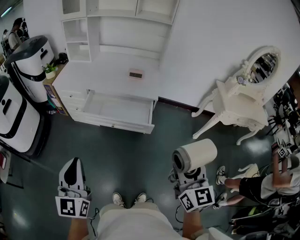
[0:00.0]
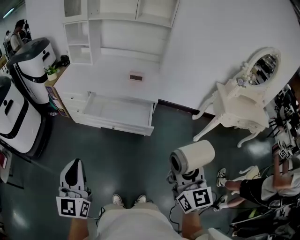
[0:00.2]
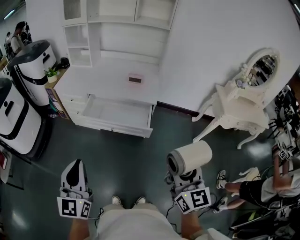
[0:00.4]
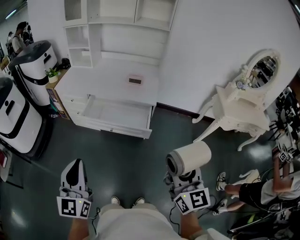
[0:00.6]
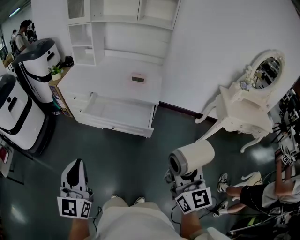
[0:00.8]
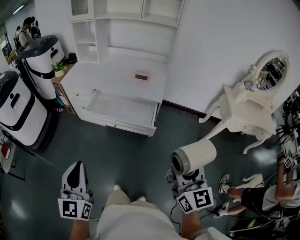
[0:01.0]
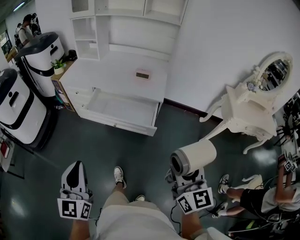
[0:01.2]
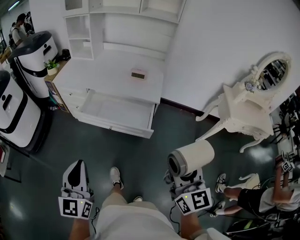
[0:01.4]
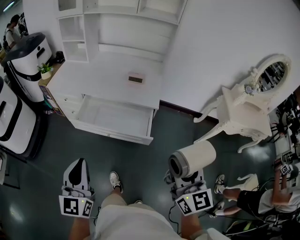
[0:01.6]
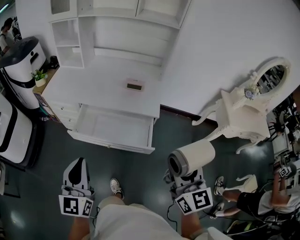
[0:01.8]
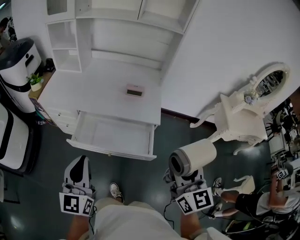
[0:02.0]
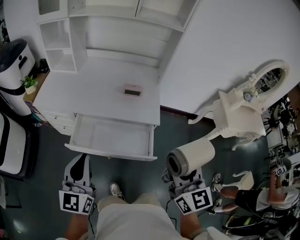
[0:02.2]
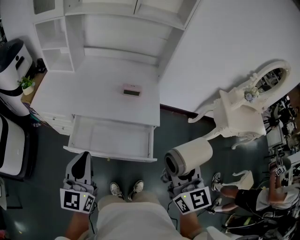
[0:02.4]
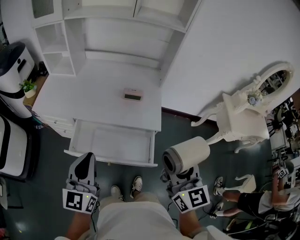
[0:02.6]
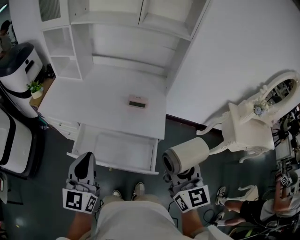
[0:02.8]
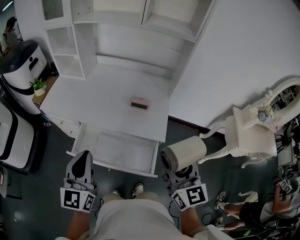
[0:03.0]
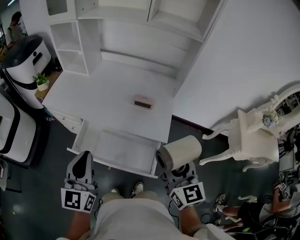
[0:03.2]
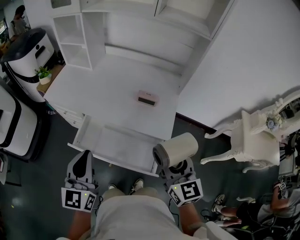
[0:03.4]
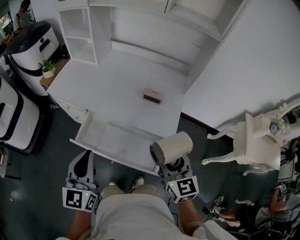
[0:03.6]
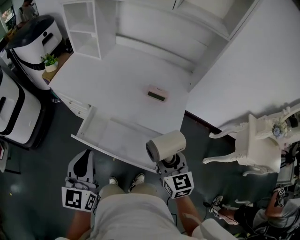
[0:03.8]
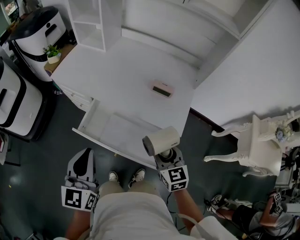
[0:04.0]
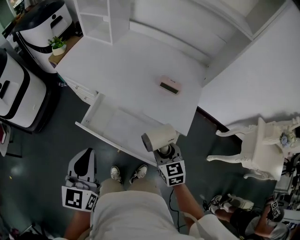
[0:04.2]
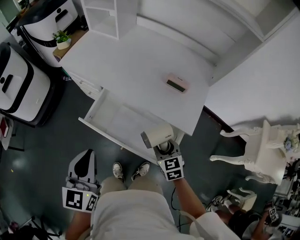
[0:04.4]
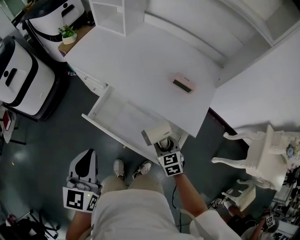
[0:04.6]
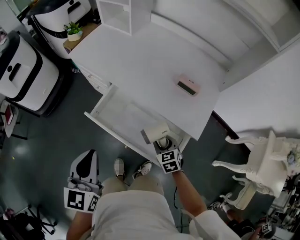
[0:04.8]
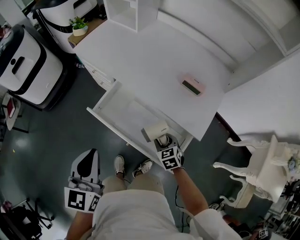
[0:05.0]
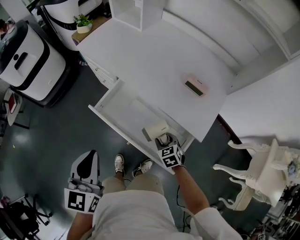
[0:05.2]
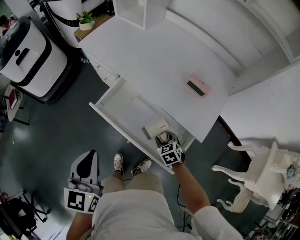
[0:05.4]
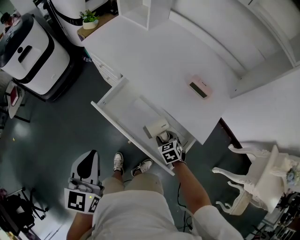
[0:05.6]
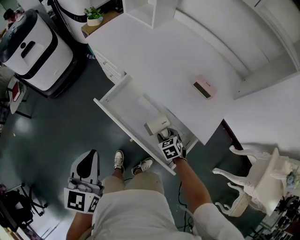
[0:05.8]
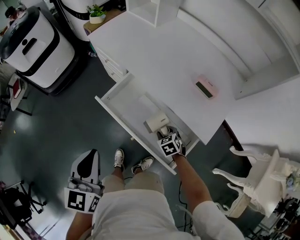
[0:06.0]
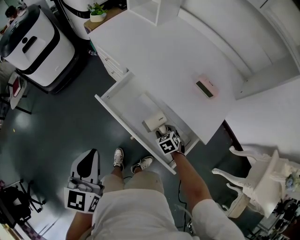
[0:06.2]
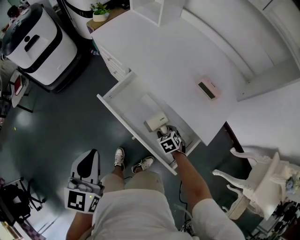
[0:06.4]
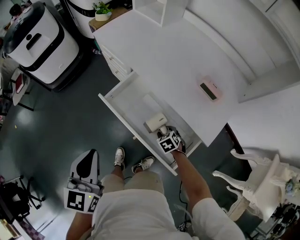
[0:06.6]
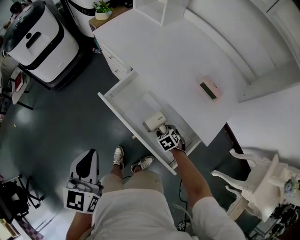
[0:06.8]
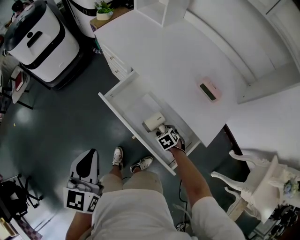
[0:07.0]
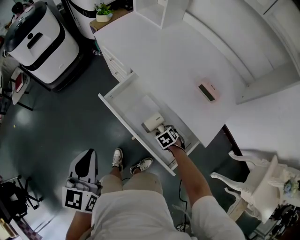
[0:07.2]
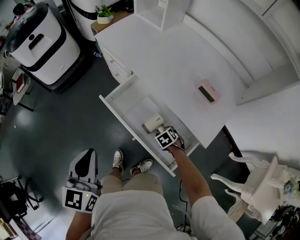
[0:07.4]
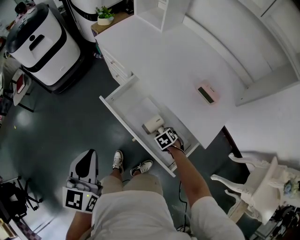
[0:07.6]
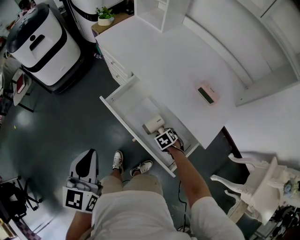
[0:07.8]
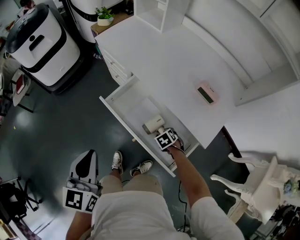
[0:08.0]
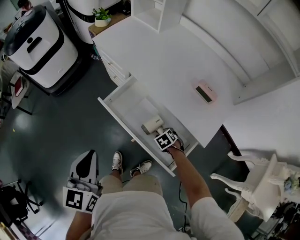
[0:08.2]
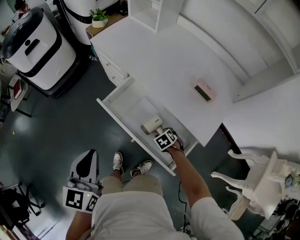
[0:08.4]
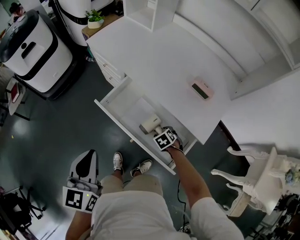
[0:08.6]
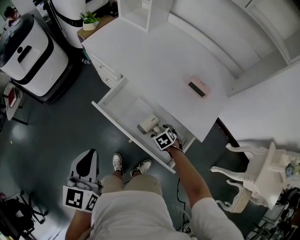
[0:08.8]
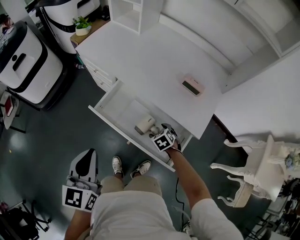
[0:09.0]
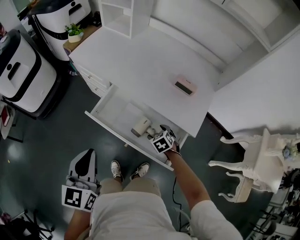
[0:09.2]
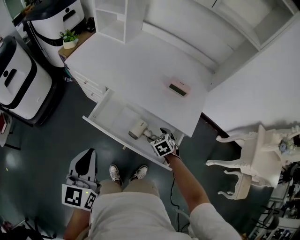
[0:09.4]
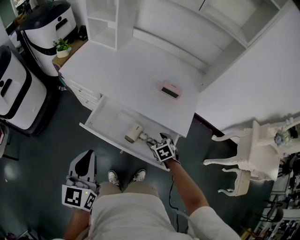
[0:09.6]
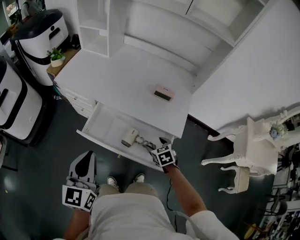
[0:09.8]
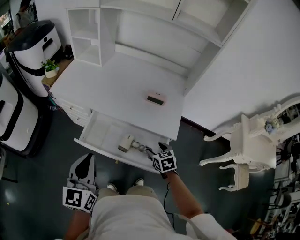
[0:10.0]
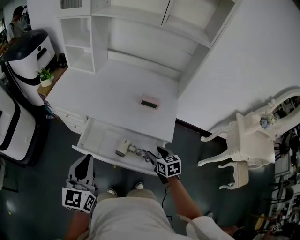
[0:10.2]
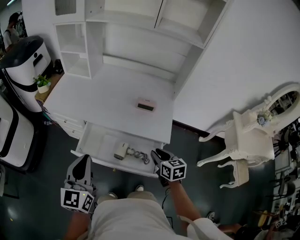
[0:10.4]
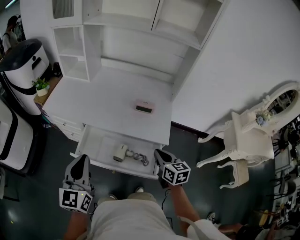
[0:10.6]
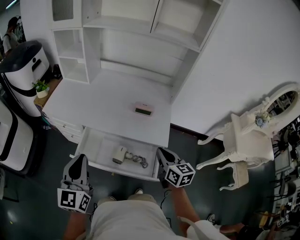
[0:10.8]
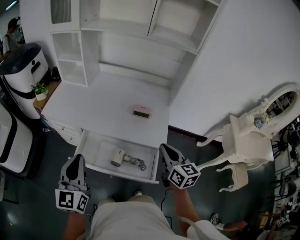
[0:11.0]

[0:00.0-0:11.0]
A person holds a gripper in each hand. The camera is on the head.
0:00.0 to 0:01.6: The right gripper travels forward by roughly 10 cm, while the left gripper heads forward and to the right, covering approximately 10 cm.
0:01.6 to 0:03.2: Both grippers move forward, approximately 30 cm.
0:03.2 to 0:04.8: The left gripper heads downward and to the left, covering about 10 cm, and rotates about 20 degrees; the right gripper travels downward by some 35 cm, and tips its fingers downward by roughly 40 degrees.
0:04.8 to 0:06.2: The left gripper moves approximately 5 cm; the right gripper travels downward by roughly 10 cm, and rotates approximately 20 degrees.
0:06.2 to 0:07.8: The grippers make only small movements.
0:07.8 to 0:09.4: The right gripper travels upward by some 10 cm, turns by about 20 degrees, and opens its fingers.
0:09.4 to 0:11.0: The right gripper goes approximately 30 cm upward, angles its fingers upward, by about 50 degrees, and closes its fingers; the left gripper goes about 10 cm upward and forward.

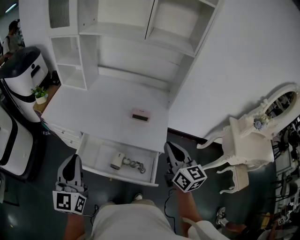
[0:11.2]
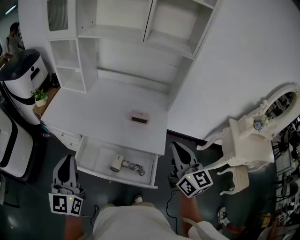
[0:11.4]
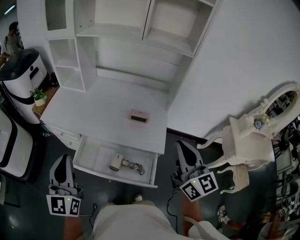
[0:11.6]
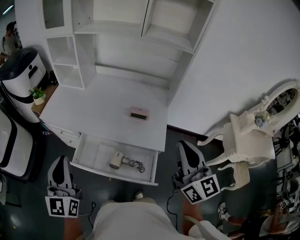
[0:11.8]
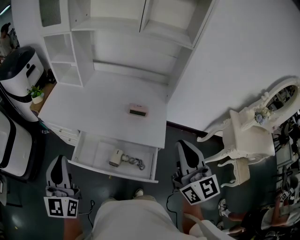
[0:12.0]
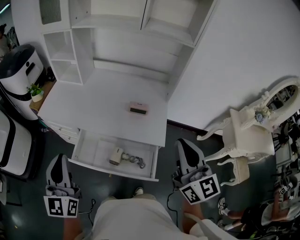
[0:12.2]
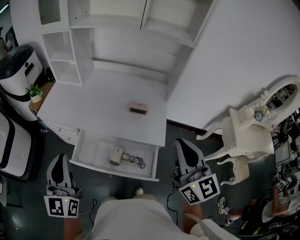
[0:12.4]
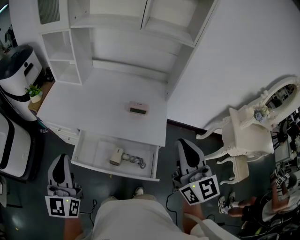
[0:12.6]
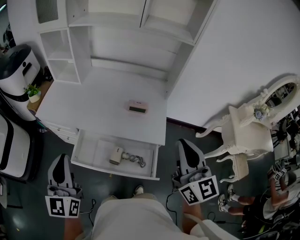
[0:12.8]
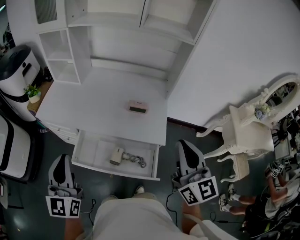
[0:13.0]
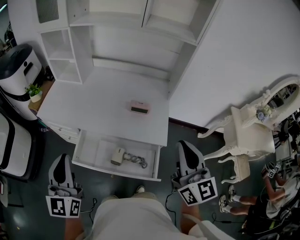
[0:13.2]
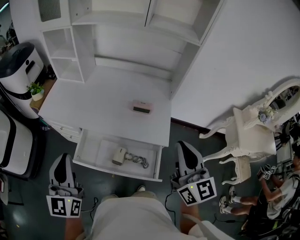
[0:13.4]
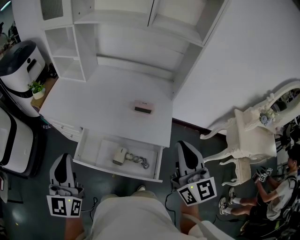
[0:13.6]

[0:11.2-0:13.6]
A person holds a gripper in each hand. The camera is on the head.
0:11.2 to 0:12.4: The right gripper shifts roughly 10 cm upward.
0:12.4 to 0:13.6: There are only small adjustments of the grippers.

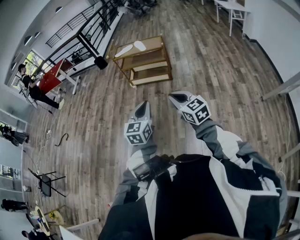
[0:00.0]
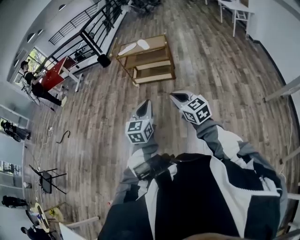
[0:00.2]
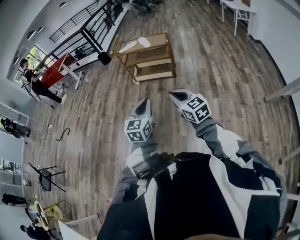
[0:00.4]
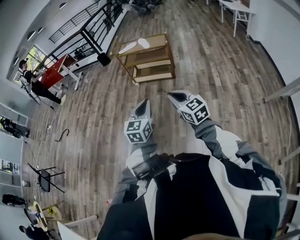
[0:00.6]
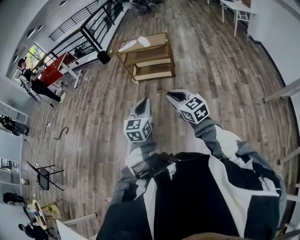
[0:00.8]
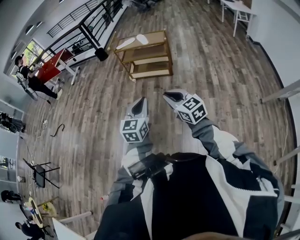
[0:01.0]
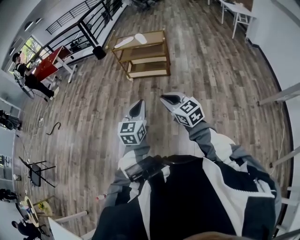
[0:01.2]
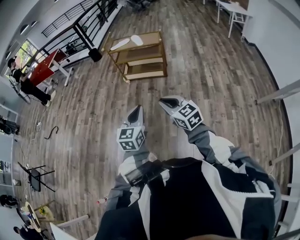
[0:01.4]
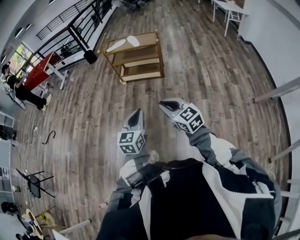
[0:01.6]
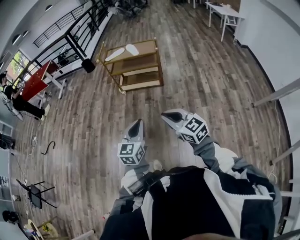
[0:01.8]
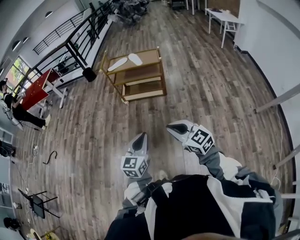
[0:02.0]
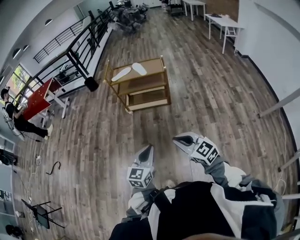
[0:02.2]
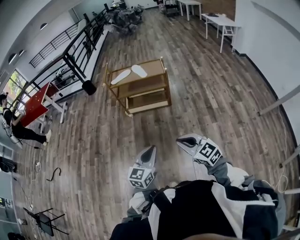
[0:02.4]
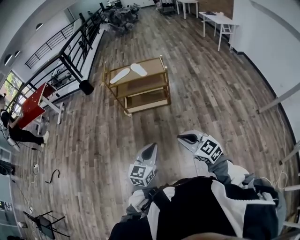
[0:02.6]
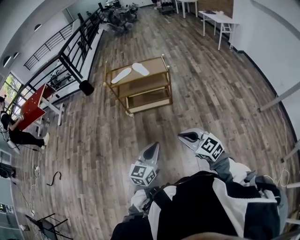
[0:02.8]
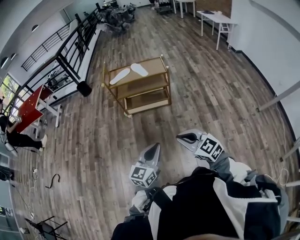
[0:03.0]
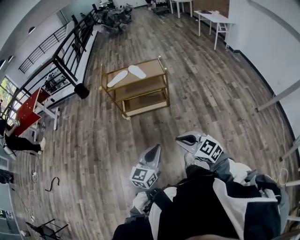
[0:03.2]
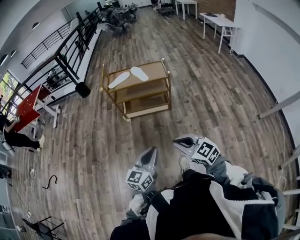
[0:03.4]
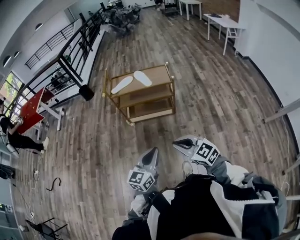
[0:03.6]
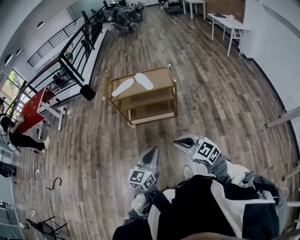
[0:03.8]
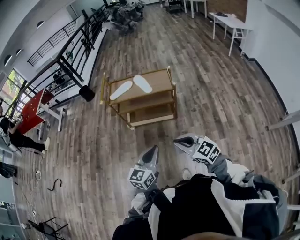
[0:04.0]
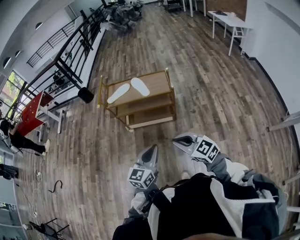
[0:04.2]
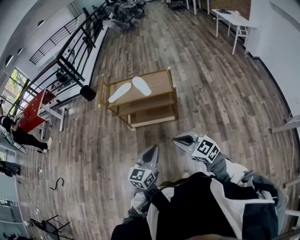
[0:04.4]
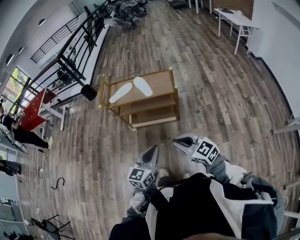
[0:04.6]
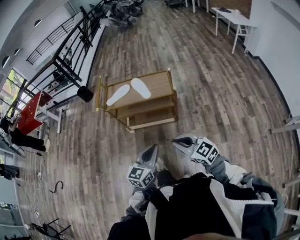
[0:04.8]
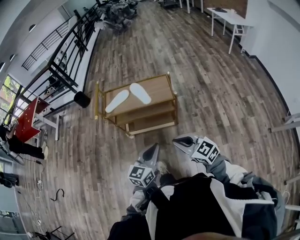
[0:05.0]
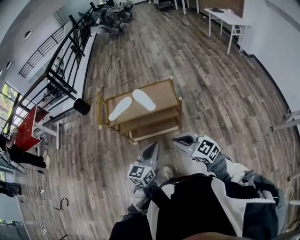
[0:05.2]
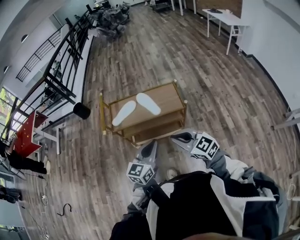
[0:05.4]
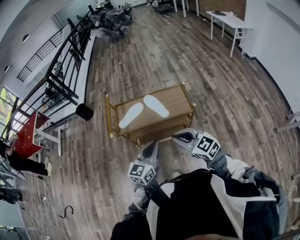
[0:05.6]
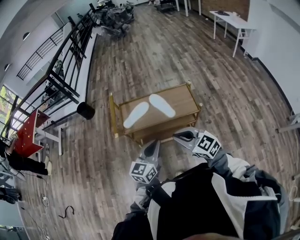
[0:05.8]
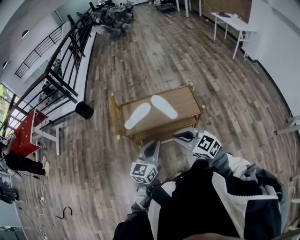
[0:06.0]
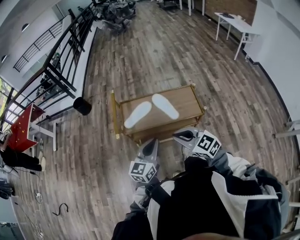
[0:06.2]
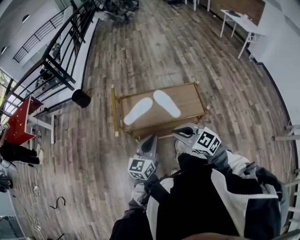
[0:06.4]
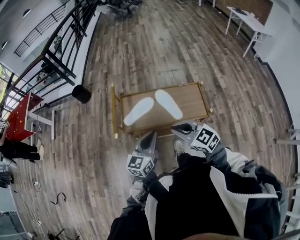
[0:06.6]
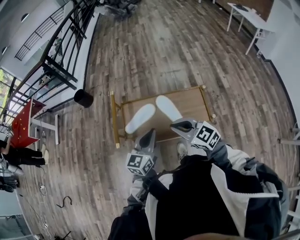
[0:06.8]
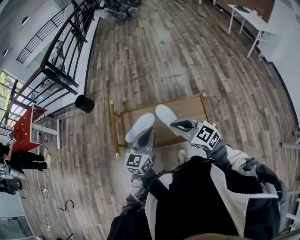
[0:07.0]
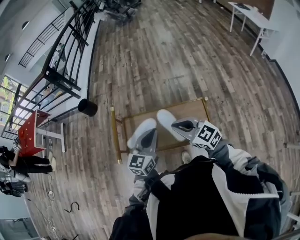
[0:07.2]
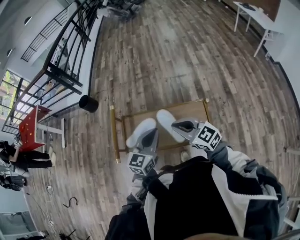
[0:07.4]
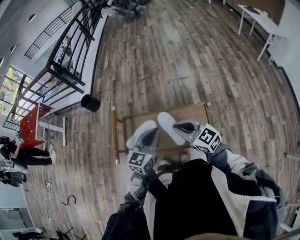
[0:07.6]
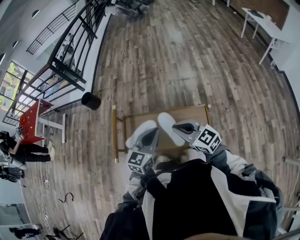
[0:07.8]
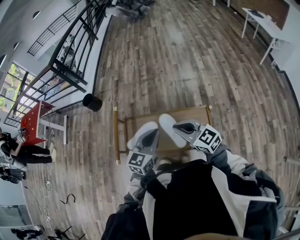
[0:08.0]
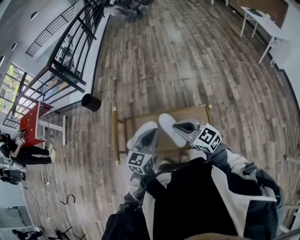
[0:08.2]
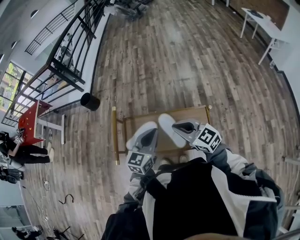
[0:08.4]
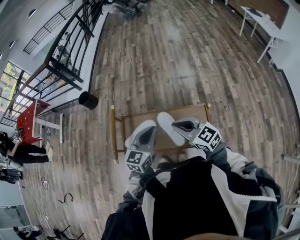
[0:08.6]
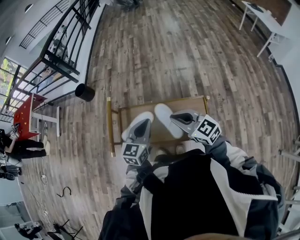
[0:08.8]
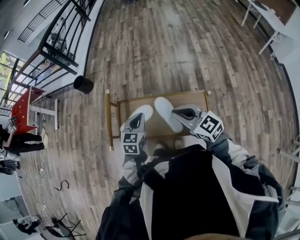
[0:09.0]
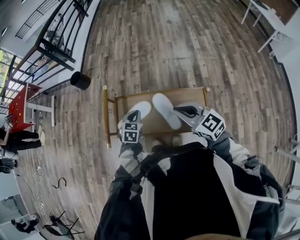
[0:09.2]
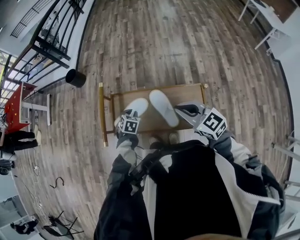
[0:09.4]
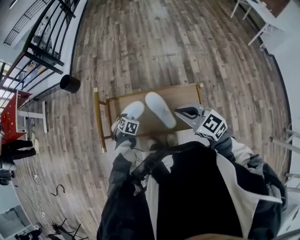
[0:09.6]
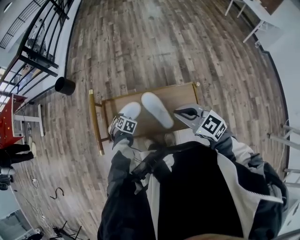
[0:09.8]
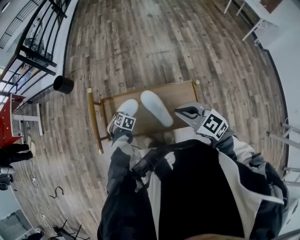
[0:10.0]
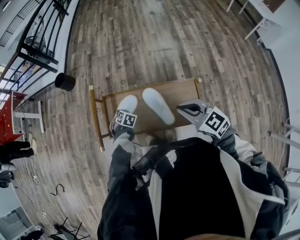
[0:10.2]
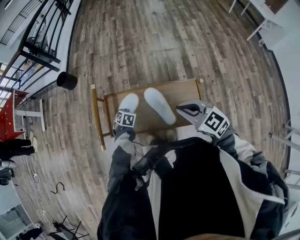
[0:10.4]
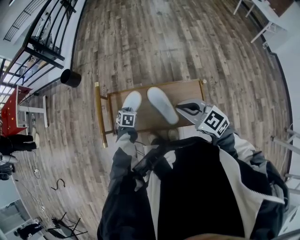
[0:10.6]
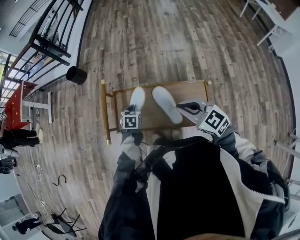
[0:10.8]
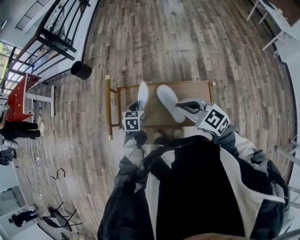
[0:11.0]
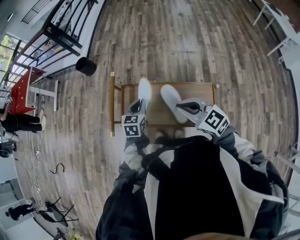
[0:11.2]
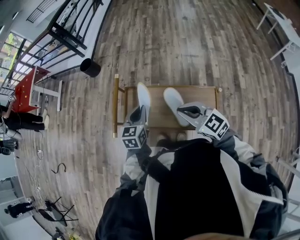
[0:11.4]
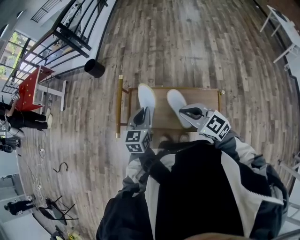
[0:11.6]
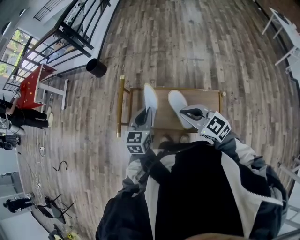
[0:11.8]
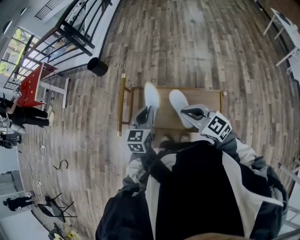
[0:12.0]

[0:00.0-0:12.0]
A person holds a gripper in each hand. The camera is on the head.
0:00.0 to 0:01.6: There are only small adjustments of the grippers.
0:01.6 to 0:03.0: The grippers both shift forward and to the left by some 20 cm. The left gripper swivels approximately 30 degrees.
0:03.0 to 0:04.4: The grippers both shift forward and to the right by some 30 cm.
0:04.4 to 0:06.0: Both grippers move forward and to the left, roughly 35 cm.
0:06.0 to 0:07.6: The grippers both shift forward and to the right by roughly 30 cm.
0:07.6 to 0:09.0: The left gripper travels downward, to the left and forward by roughly 10 cm, and changes its angle by approximately 20 degrees.
0:09.0 to 0:10.4: The left gripper is displaced downward by some 20 cm, tilts its fingers about 40 degrees downward, and opens and closes again.
0:10.4 to 0:12.0: The left gripper is displaced upward by roughly 25 cm, and angles its fingers upward, by roughly 40 degrees. Meanwhile the right gripper is displaced to the left by some 5 cm.
